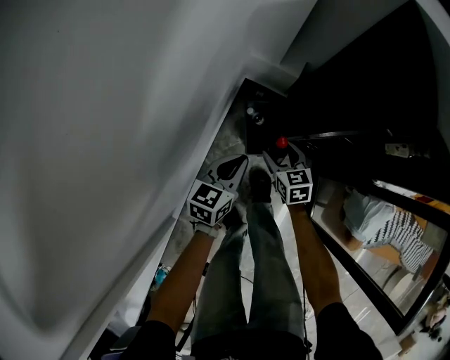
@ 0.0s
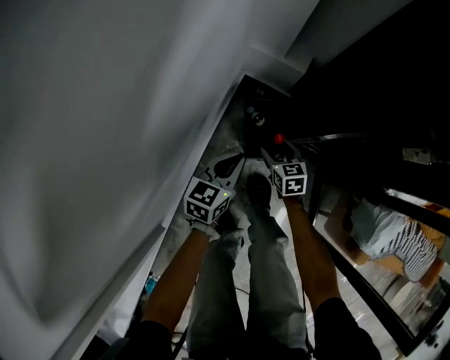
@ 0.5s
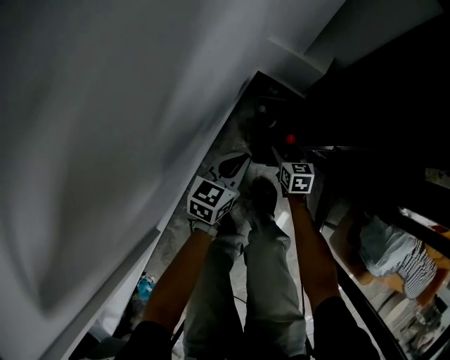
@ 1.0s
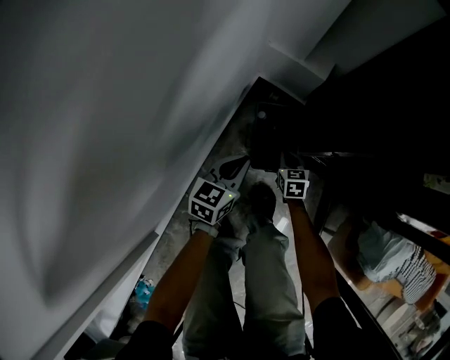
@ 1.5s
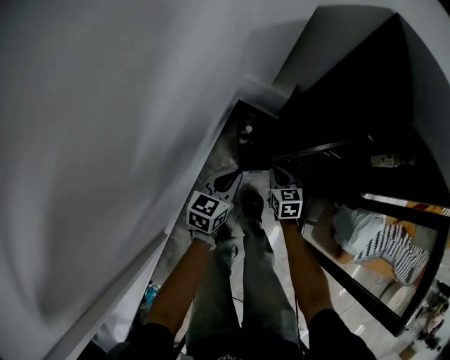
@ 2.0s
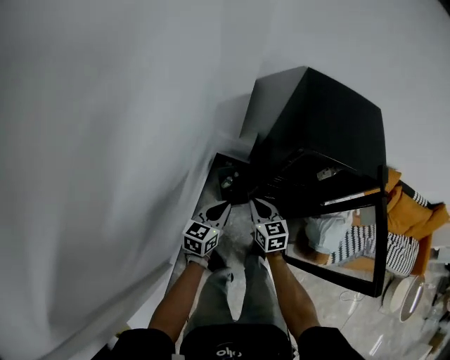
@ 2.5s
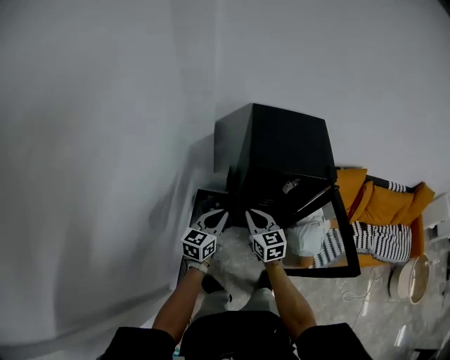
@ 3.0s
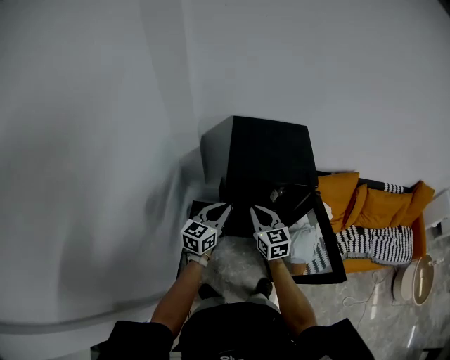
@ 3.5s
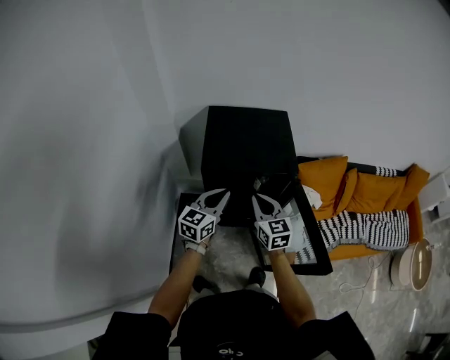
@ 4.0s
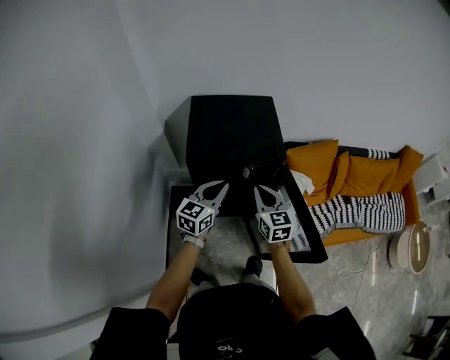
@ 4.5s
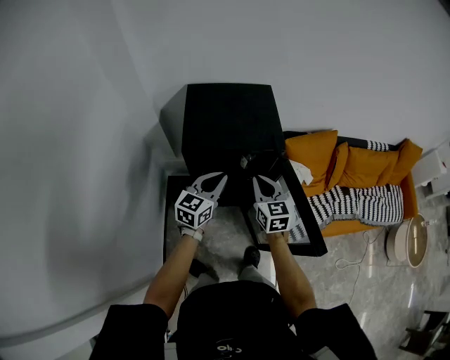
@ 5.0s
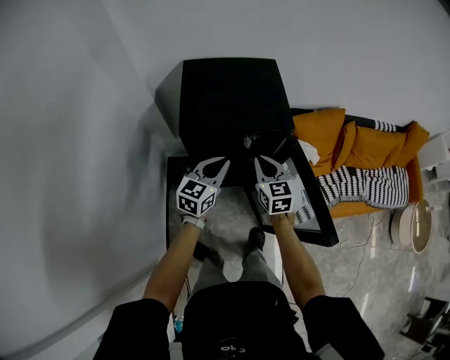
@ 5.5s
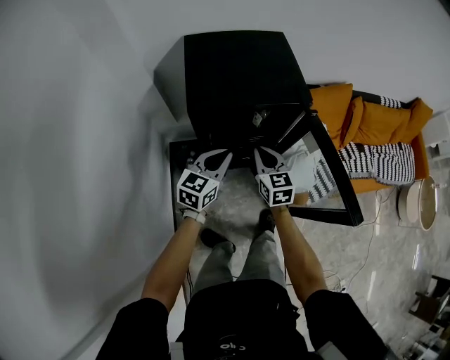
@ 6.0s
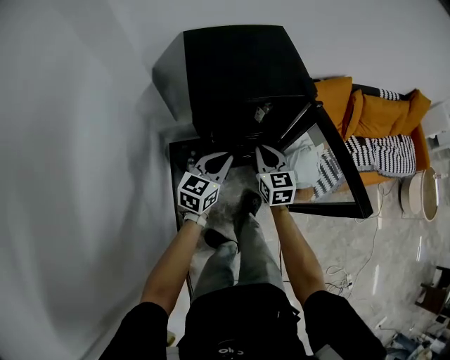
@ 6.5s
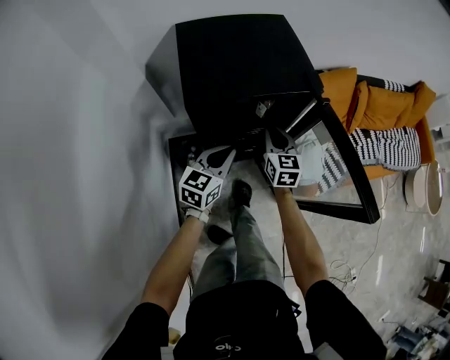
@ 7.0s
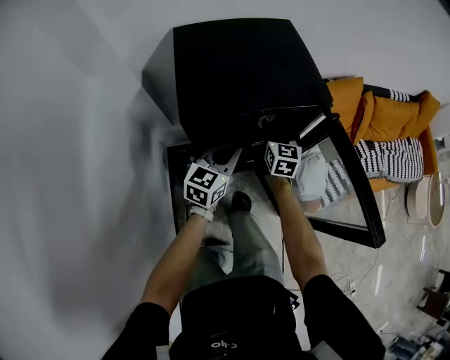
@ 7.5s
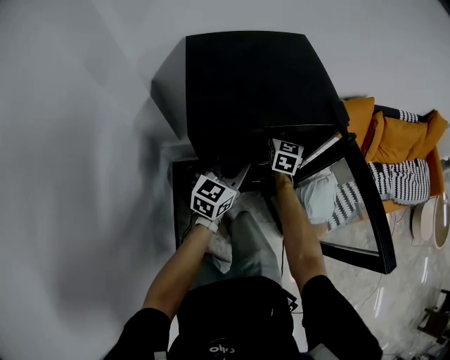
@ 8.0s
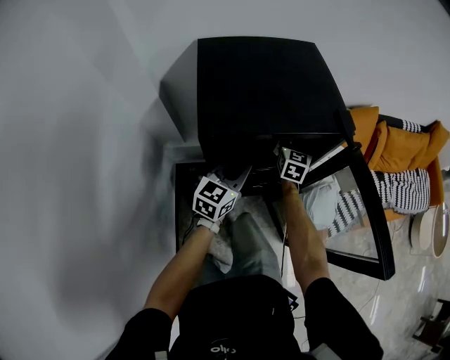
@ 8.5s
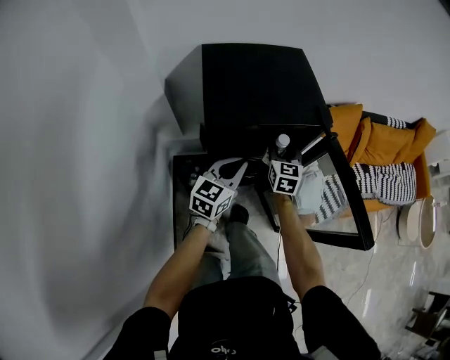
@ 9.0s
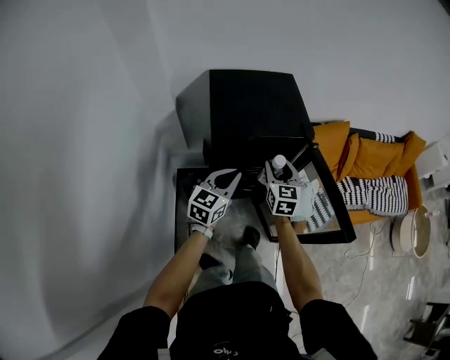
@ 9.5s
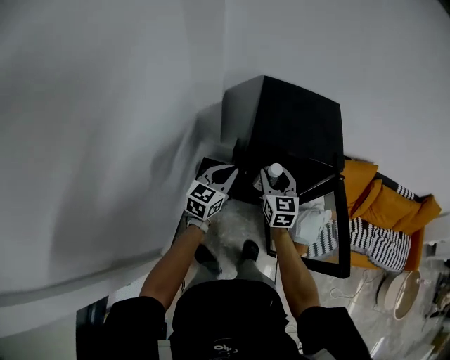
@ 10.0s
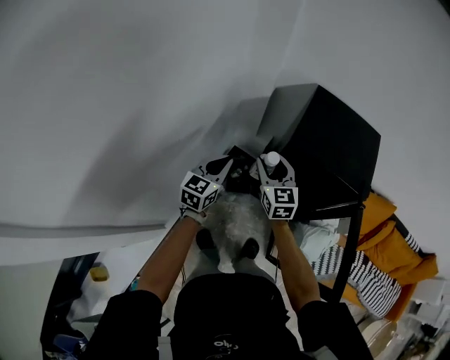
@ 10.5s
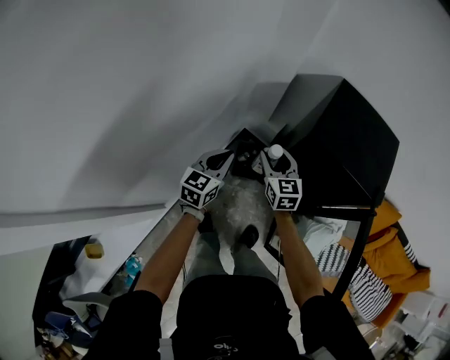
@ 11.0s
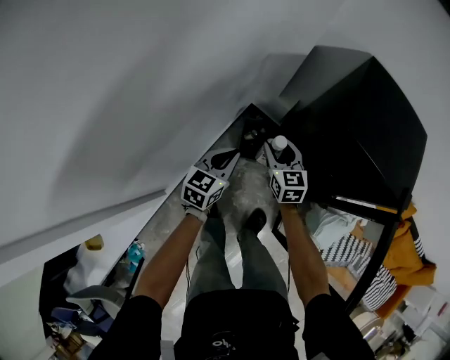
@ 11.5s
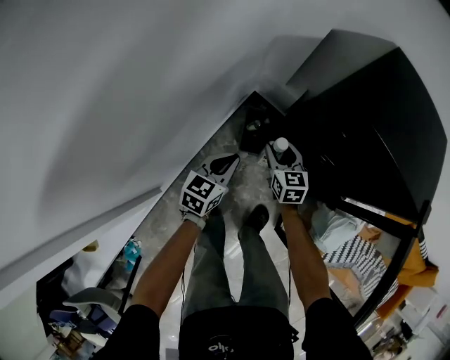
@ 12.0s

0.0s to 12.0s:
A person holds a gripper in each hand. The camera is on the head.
0.0s to 2.0s: The left gripper travels downward and back again, approximately 20 cm each way; the right gripper travels downward and back again, approximately 25 cm each way, and closes.
2.0s to 4.0s: Both grippers travel together upward and to the right, approximately 60 cm. The right gripper swivels roughly 30 degrees; the left gripper changes its angle by approximately 30 degrees.
4.0s to 6.0s: Both grippers move downward, about 10 cm.
6.0s to 8.0s: The right gripper travels forward and downward by roughly 25 cm, swivels approximately 20 degrees, and opens its fingers. The left gripper travels downward and forward by some 15 cm.
8.0s to 10.0s: The left gripper shifts by roughly 25 cm, and swivels some 20 degrees; the right gripper ends up approximately 35 cm from where it was, and swivels about 30 degrees.
10.0s to 12.0s: The grippers both shift downward by approximately 30 cm. The right gripper changes its angle by about 30 degrees. The left gripper swivels some 30 degrees.

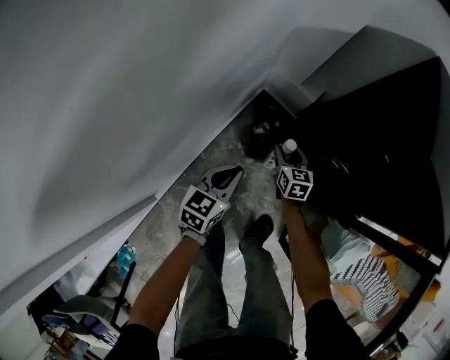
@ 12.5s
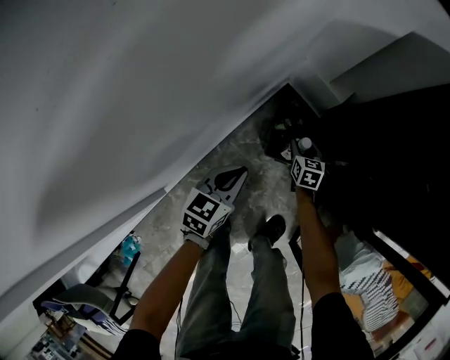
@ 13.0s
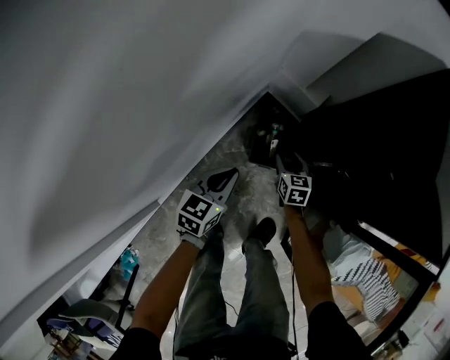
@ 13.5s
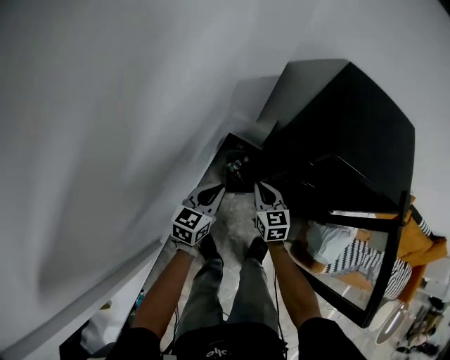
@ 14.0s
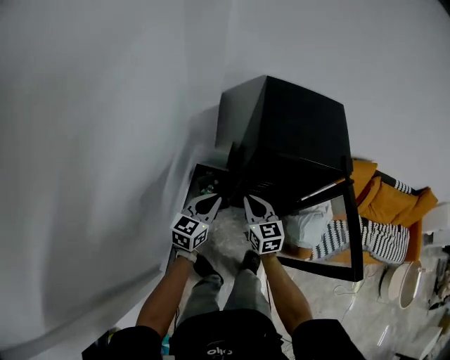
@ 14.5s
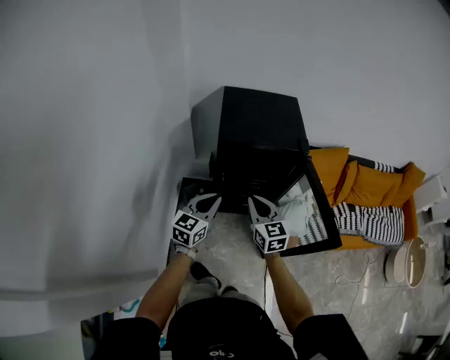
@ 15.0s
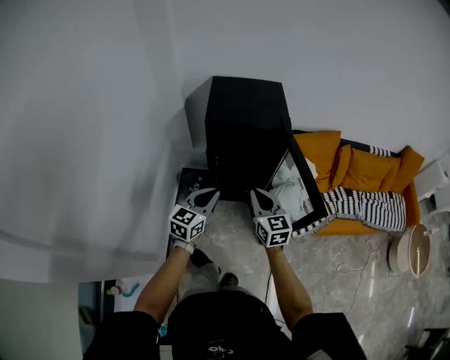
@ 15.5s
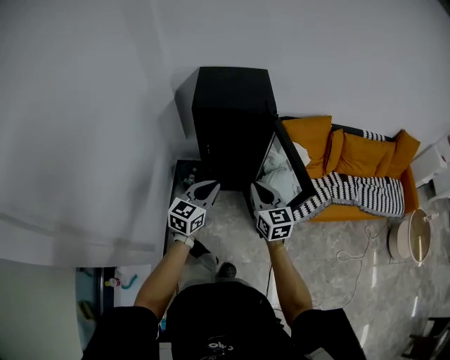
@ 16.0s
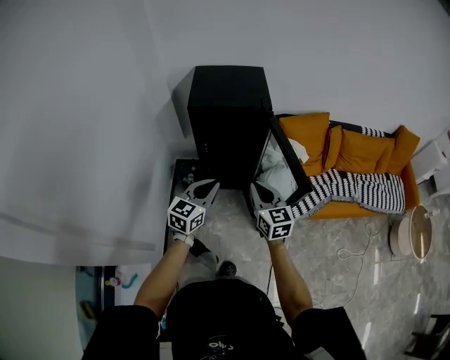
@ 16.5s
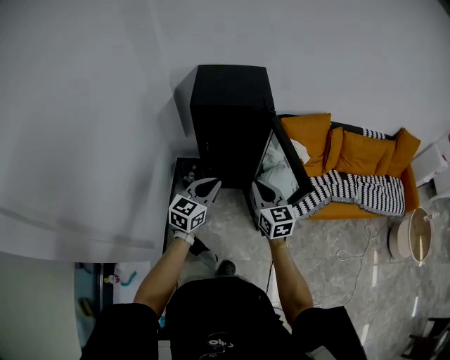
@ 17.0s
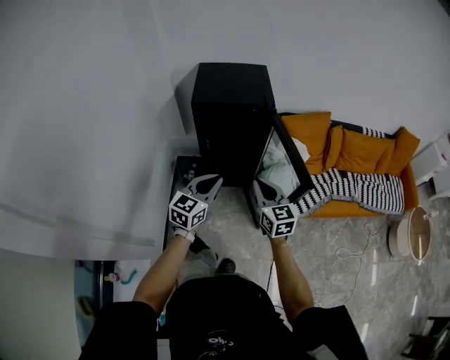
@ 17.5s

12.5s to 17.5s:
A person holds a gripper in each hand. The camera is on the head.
12.5s to 15.0s: Both grippers travel together upward, some 40 cm. The right gripper turns by some 30 degrees, and closes. Meanwhile the left gripper swivels roughly 40 degrees.
15.0s to 17.5s: The two grippers go some 20 cm to the right and backward.

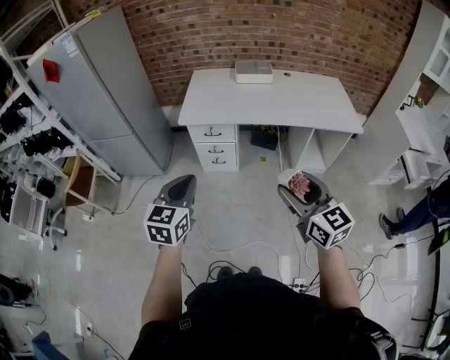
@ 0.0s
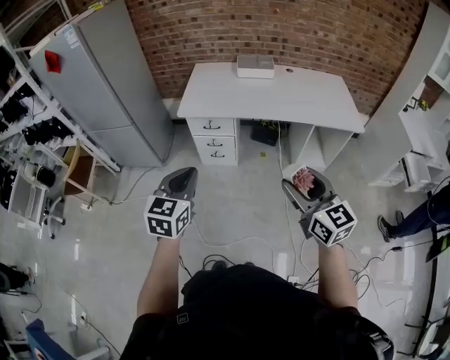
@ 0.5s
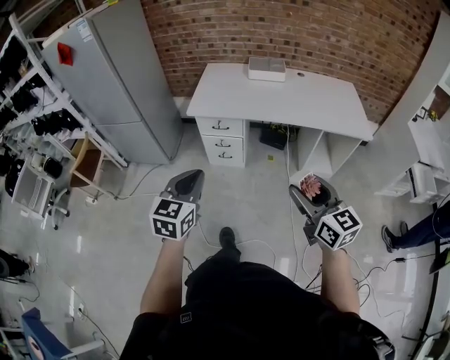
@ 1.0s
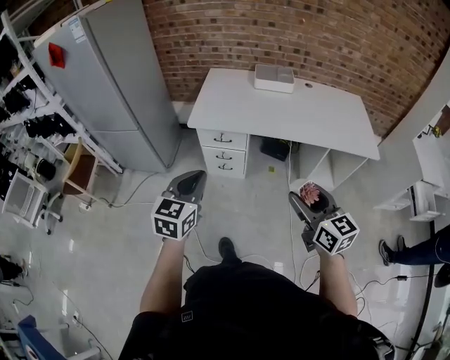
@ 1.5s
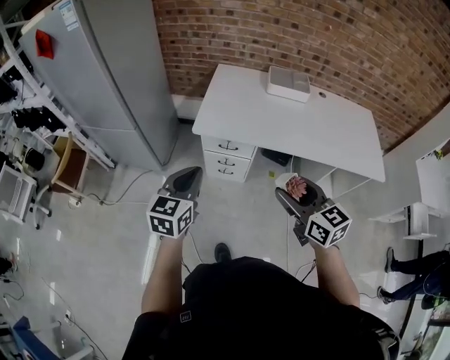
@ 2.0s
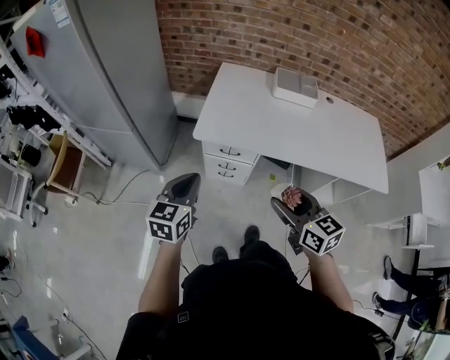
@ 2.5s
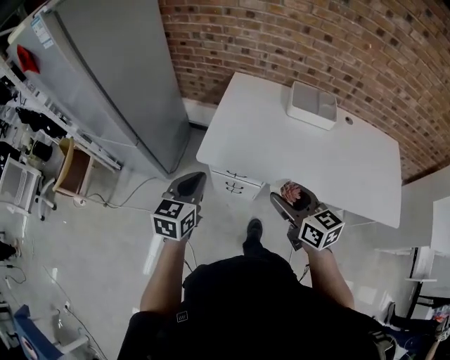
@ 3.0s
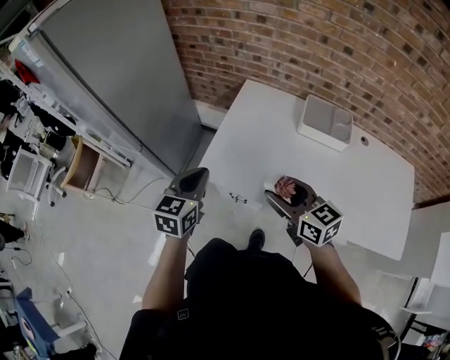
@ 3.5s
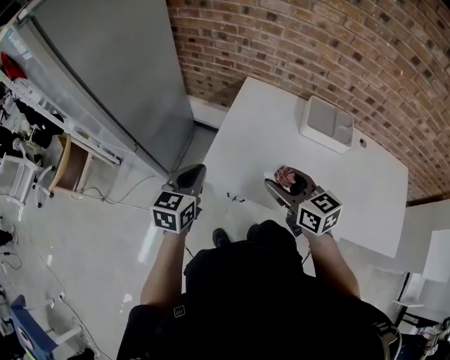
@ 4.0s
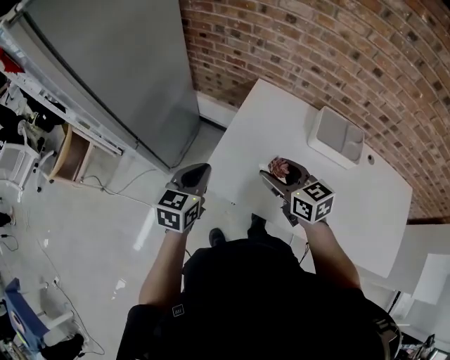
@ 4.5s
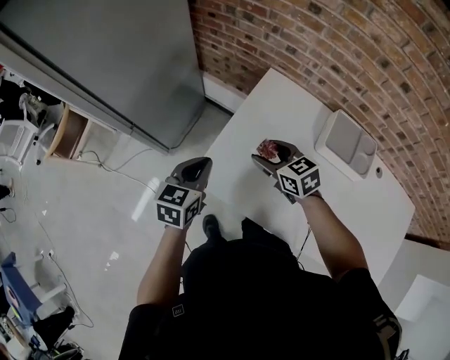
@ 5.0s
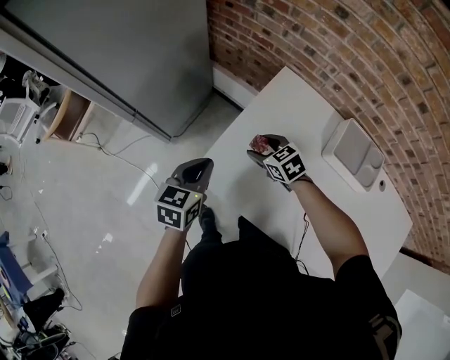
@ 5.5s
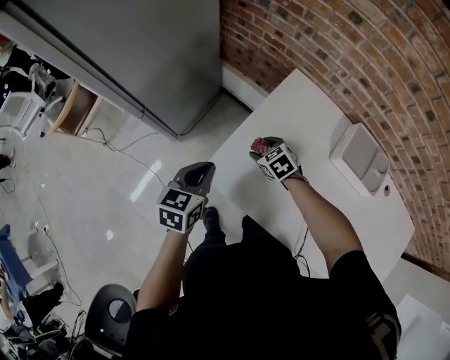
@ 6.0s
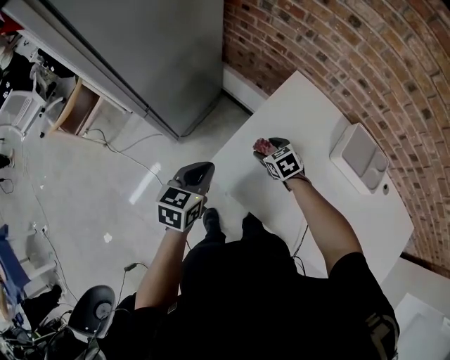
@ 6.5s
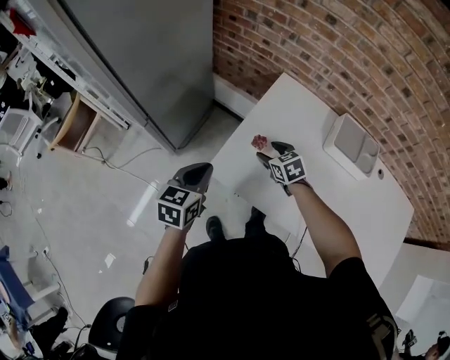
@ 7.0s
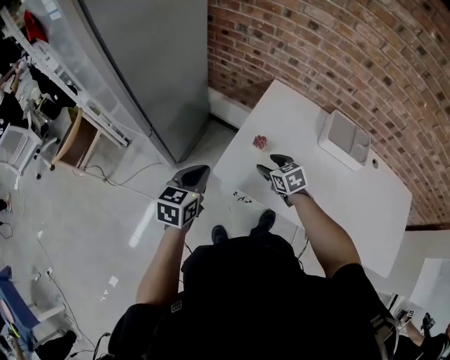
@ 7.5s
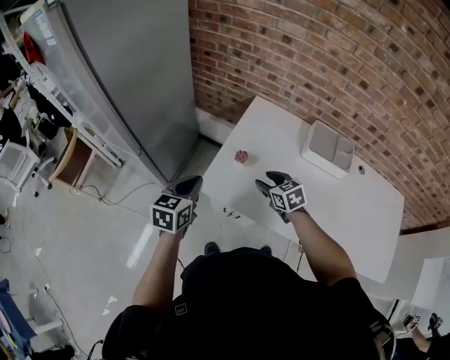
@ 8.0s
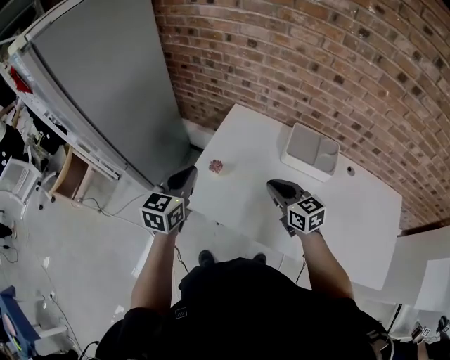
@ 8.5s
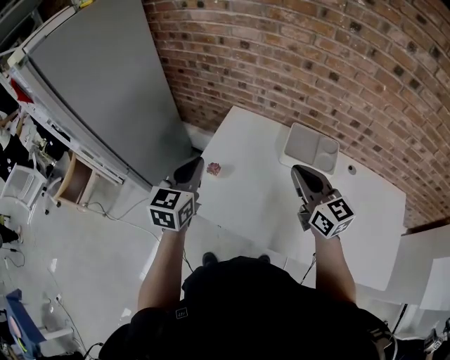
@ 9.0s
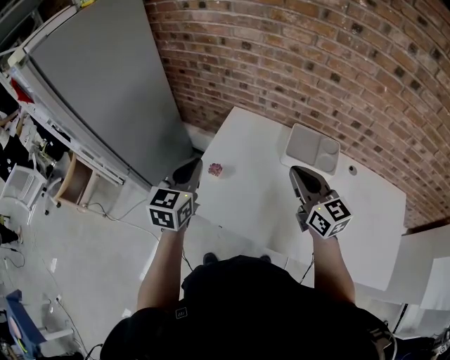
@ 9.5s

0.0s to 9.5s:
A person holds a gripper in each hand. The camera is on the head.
0.0s to 2.0s: The grippers both shift forward by approximately 25 cm.
2.0s to 4.0s: The two grippers go roughly 35 cm forward.
4.0s to 5.5s: The right gripper moves forward and downward, some 30 cm, and rotates roughly 40 degrees; the left gripper heads downward and forward, covering approximately 10 cm.
5.5s to 7.5s: The right gripper travels backward by some 10 cm. Meanwhile the left gripper travels to the left and backward by some 10 cm.
7.5s to 9.5s: The left gripper moves to the right and upward, roughly 20 cm. Meanwhile the right gripper travels upward and to the right by some 35 cm, tilts its fingers roughly 40 degrees upward, and closes its fingers.
